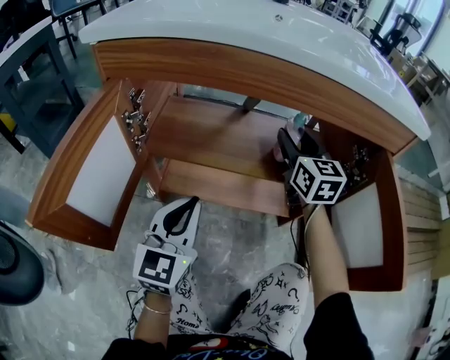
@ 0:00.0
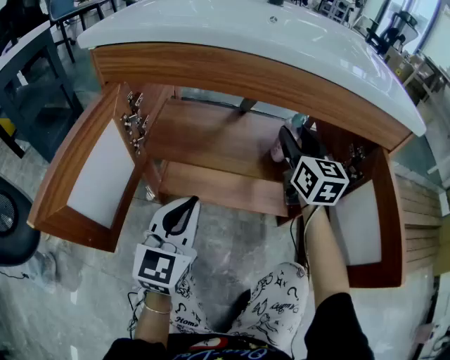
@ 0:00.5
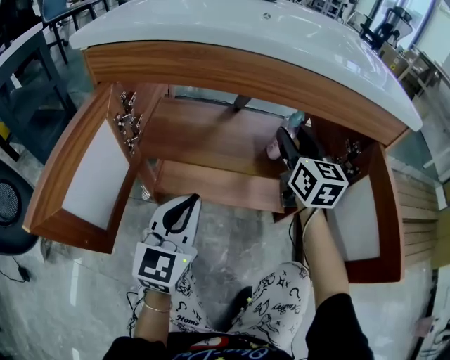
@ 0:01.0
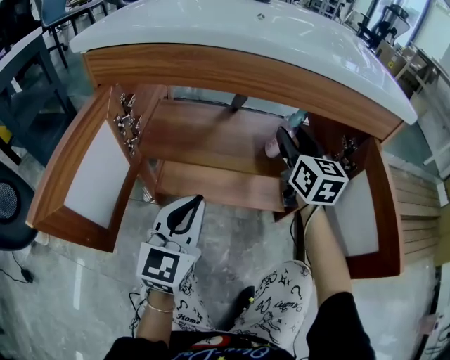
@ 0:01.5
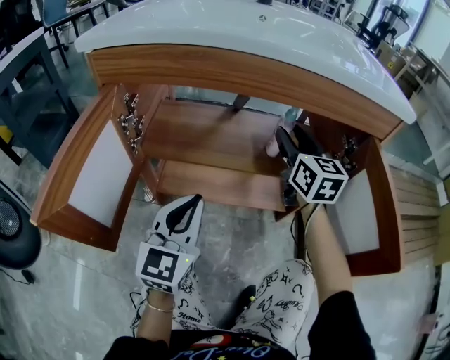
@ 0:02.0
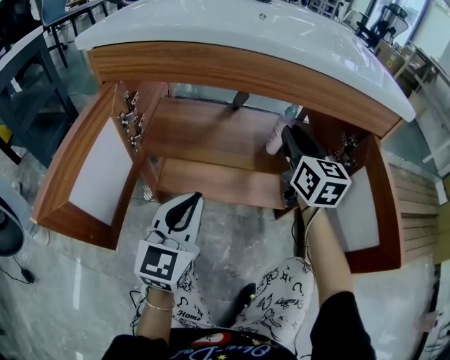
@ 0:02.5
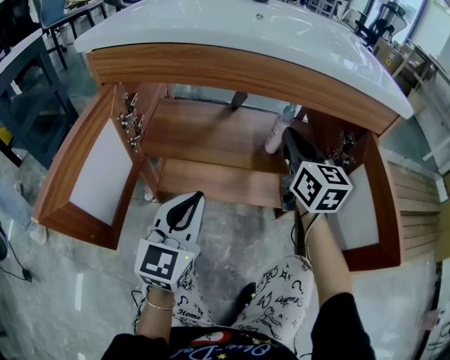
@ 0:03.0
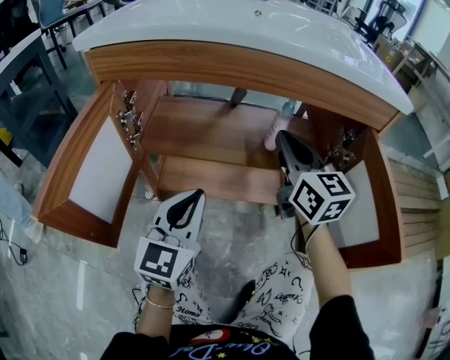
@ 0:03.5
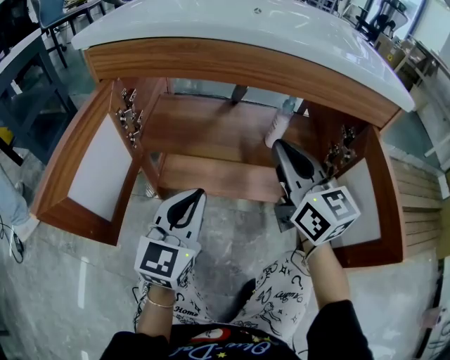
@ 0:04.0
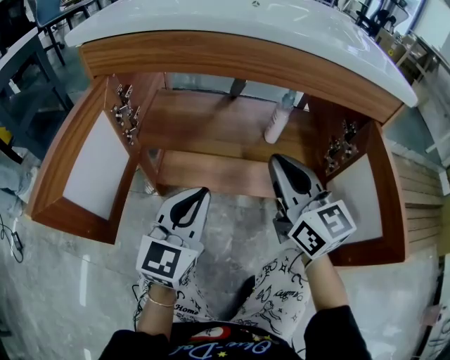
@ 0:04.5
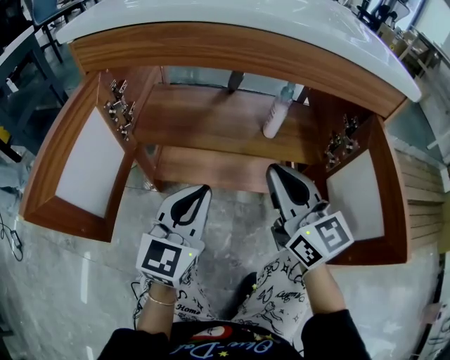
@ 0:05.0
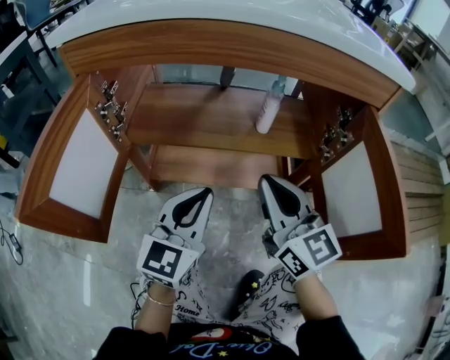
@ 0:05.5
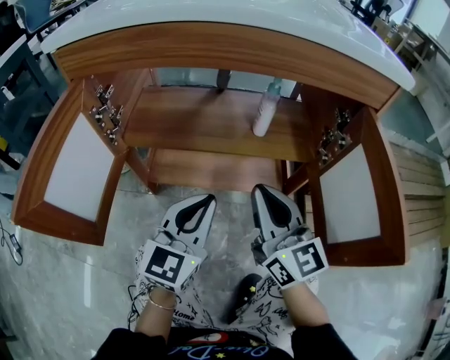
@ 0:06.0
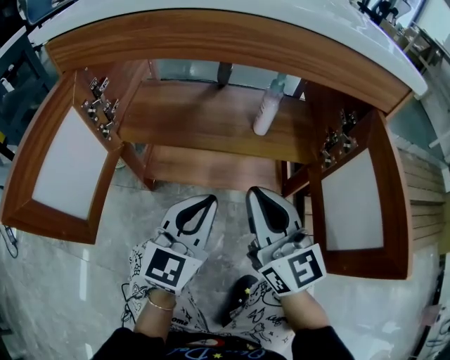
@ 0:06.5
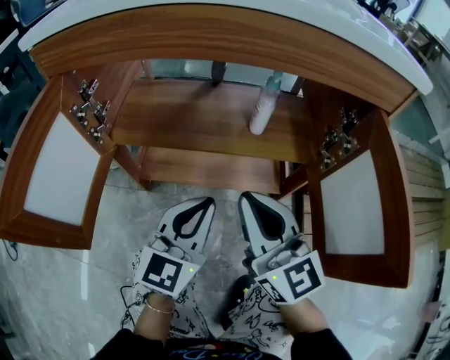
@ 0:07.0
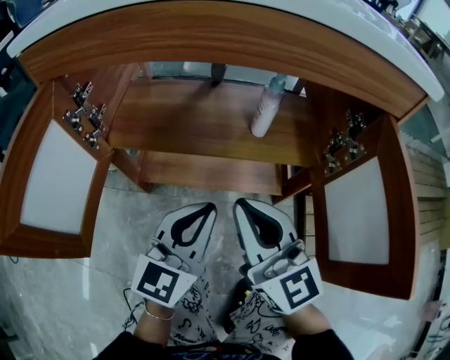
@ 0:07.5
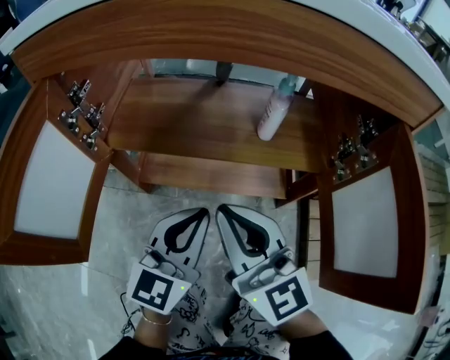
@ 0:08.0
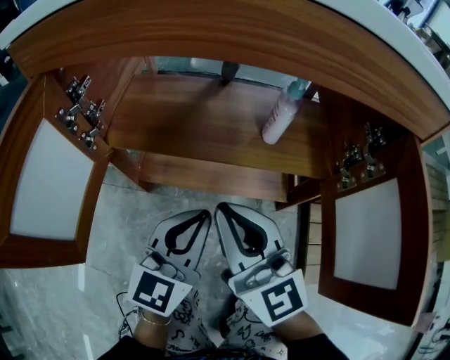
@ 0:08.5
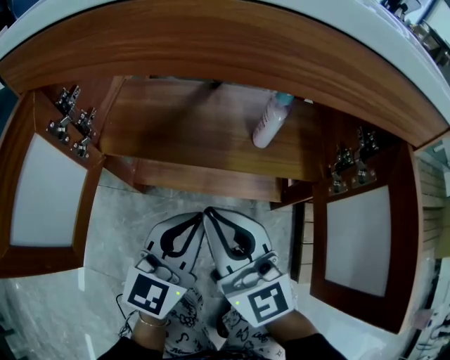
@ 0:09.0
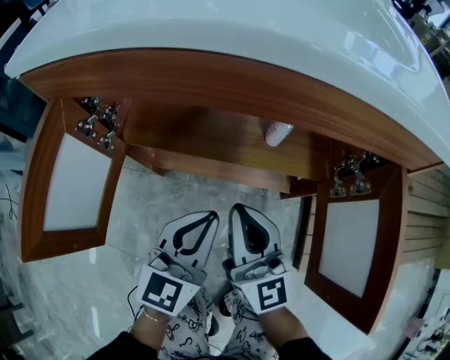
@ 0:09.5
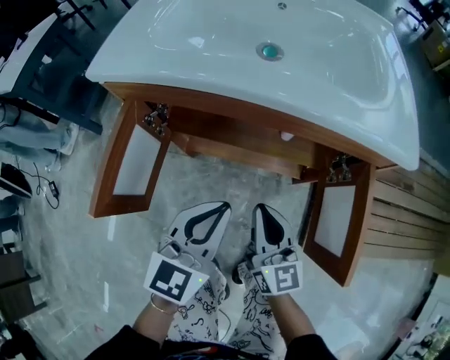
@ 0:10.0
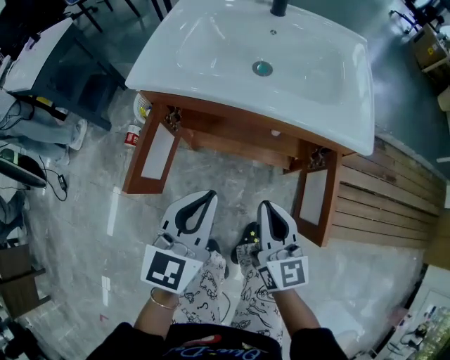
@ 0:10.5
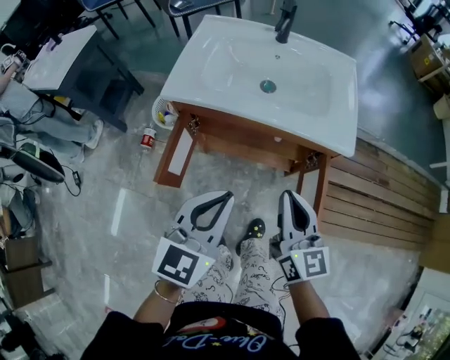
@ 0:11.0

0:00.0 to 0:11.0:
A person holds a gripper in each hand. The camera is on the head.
0:00.0 to 0:02.0: The grippers stay close to where they were, moving slightly.
0:02.0 to 0:03.5: The right gripper is displaced backward by approximately 5 cm, and closes its fingers.
0:03.5 to 0:05.5: The right gripper is displaced backward by some 10 cm.
0:05.5 to 0:07.5: The grippers move only a little.
0:07.5 to 0:09.0: The grippers move only a little.
0:09.0 to 0:11.0: The two grippers go about 35 cm upward. The right gripper changes its angle by roughly 30 degrees.

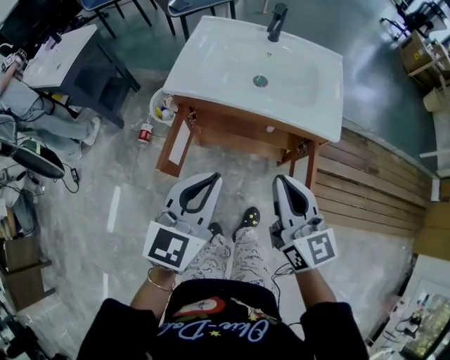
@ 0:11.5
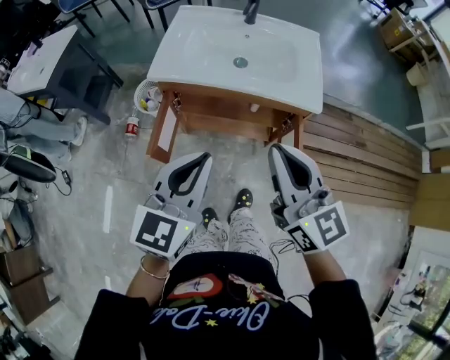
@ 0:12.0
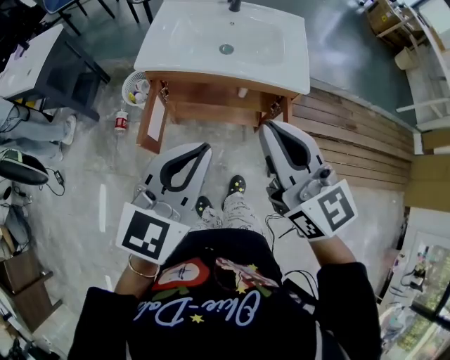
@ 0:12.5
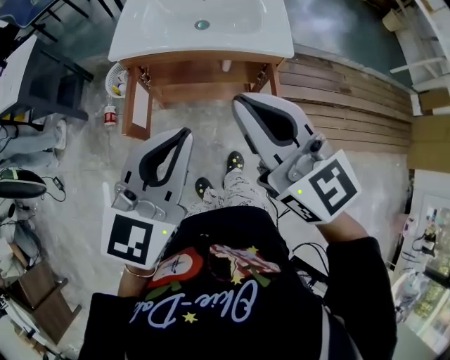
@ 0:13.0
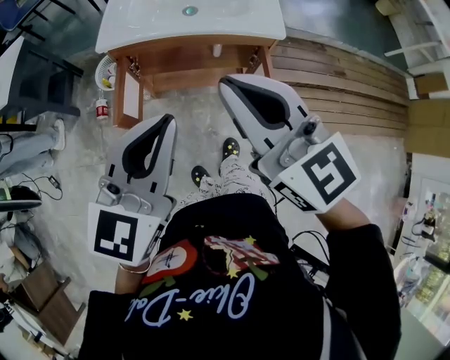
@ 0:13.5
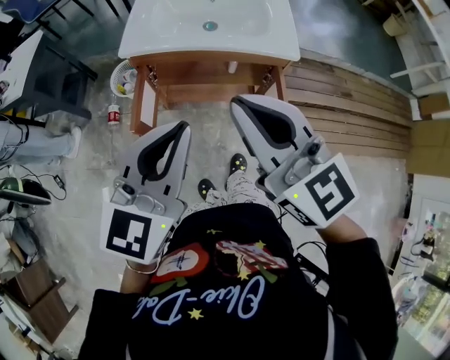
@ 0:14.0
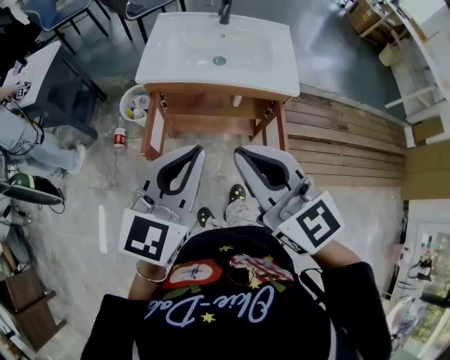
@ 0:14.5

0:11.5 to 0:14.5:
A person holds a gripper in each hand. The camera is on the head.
0:11.5 to 0:13.0: The right gripper moves upward, roughly 10 cm; the left gripper goes roughly 10 cm upward and backward.
0:13.0 to 0:14.5: The right gripper moves approximately 5 cm.

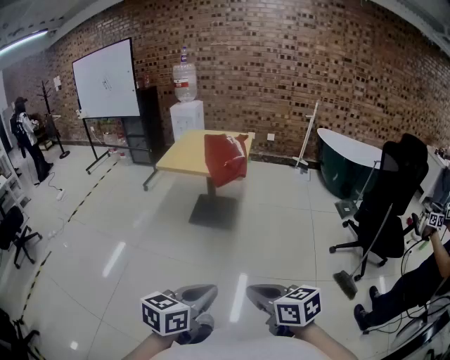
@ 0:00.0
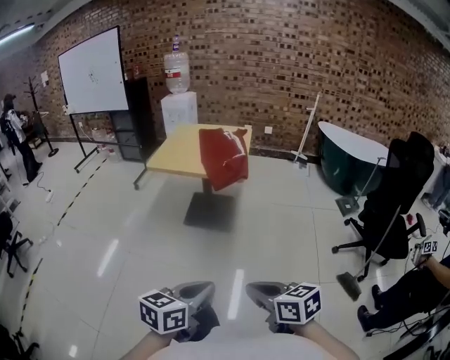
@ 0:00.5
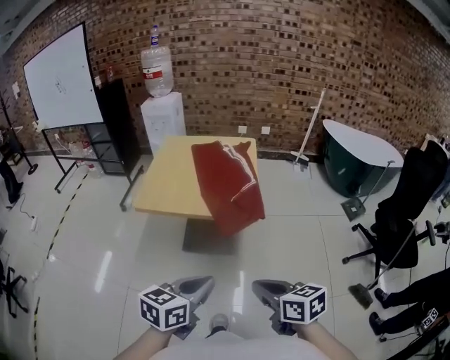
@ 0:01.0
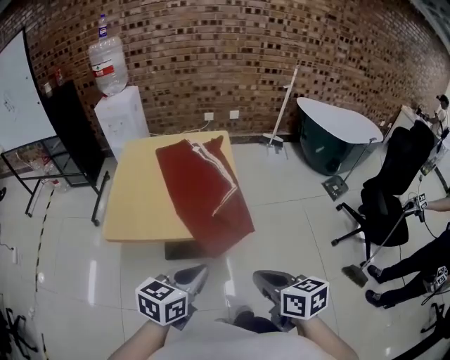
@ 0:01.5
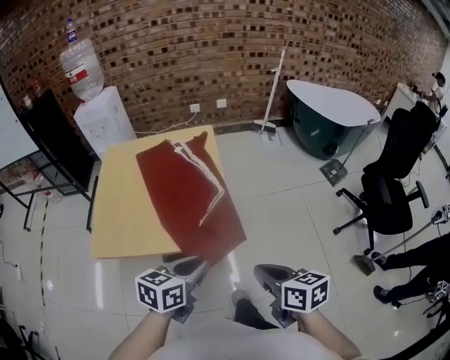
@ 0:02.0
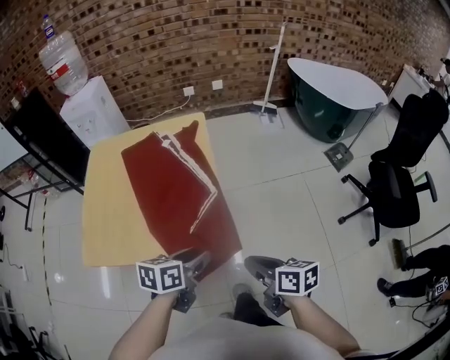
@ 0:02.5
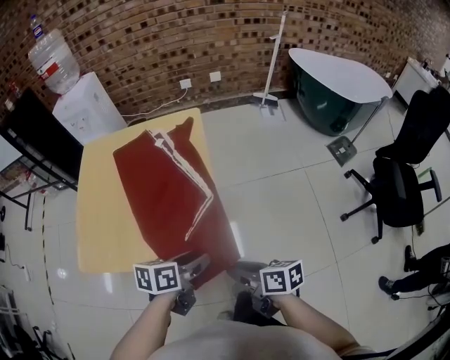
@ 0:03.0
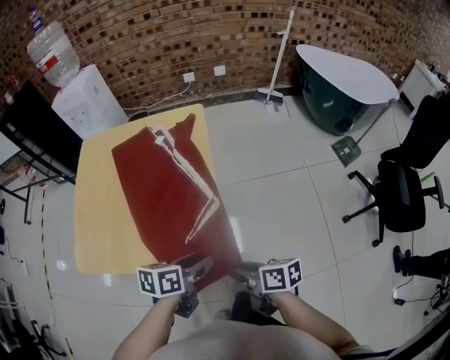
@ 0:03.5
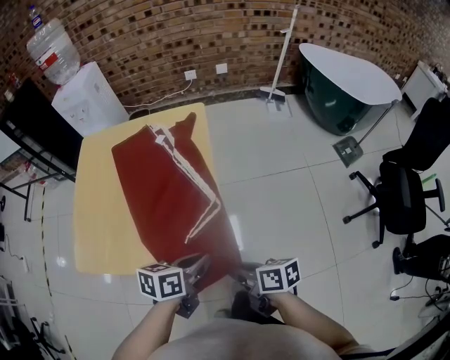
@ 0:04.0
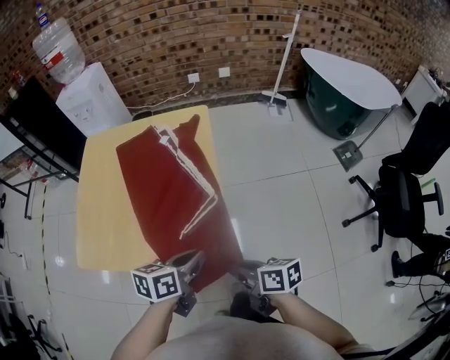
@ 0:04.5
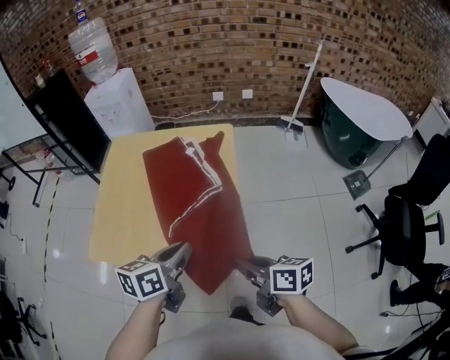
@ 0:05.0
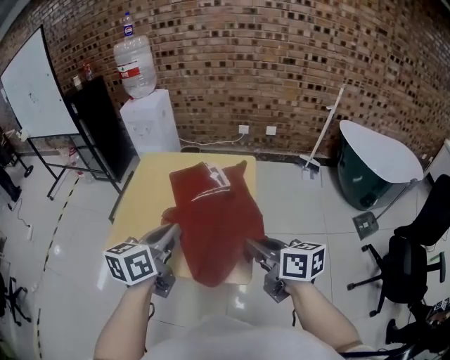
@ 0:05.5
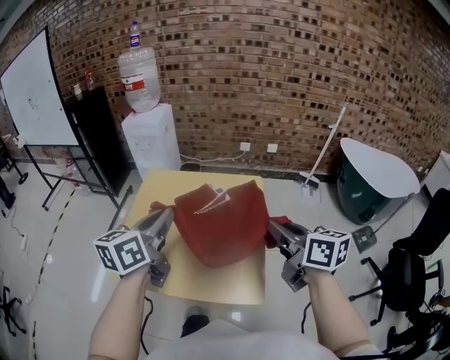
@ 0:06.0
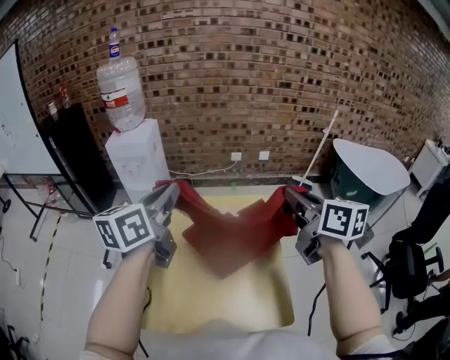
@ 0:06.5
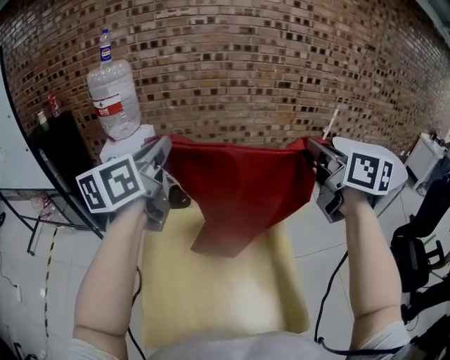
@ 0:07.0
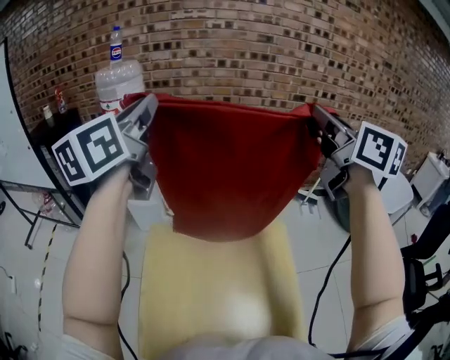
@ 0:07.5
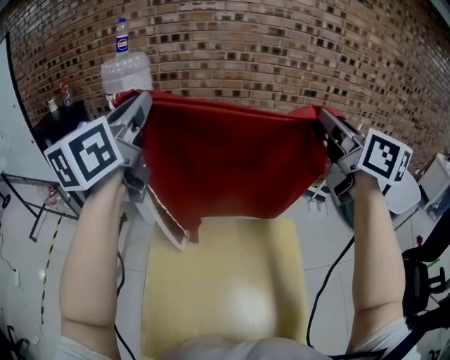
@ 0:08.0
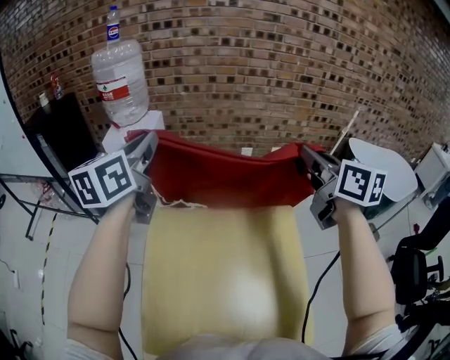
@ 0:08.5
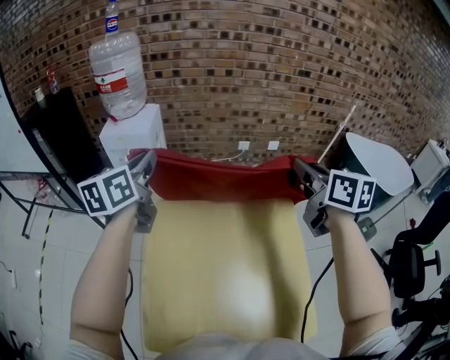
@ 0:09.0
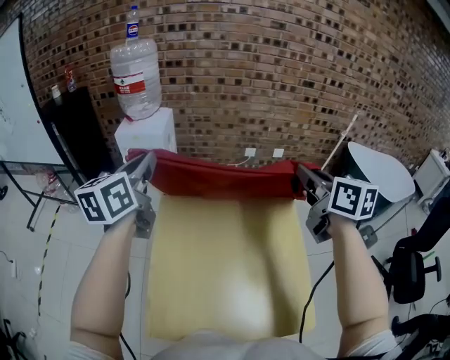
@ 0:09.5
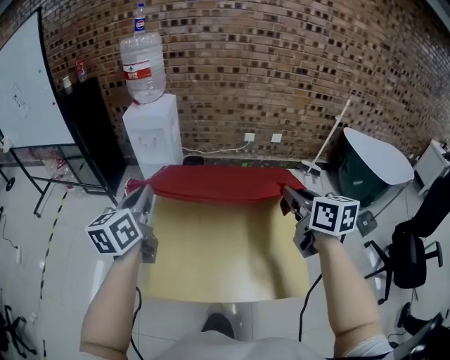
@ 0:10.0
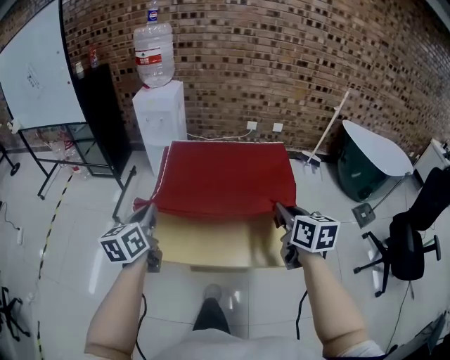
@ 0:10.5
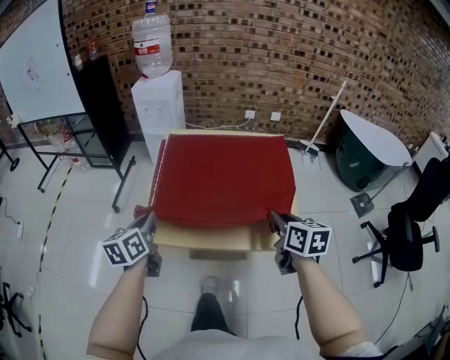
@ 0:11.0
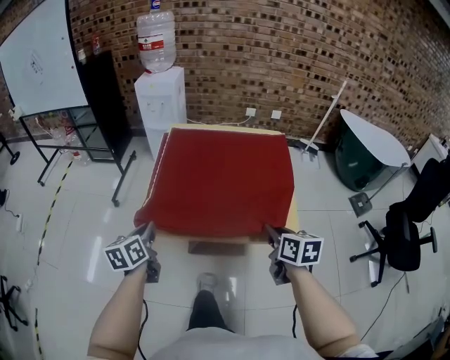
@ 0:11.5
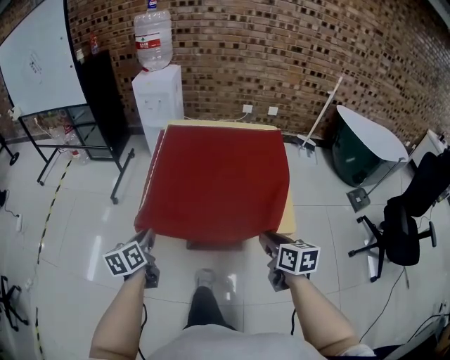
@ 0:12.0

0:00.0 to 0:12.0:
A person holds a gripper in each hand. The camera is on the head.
0:00.0 to 0:02.0: The two grippers travel together, forward, about 70 cm. The right gripper changes its angle by approximately 30 degrees. Meanwhile the left gripper turns by about 20 degrees.
0:02.0 to 0:04.0: The left gripper is displaced forward, downward and to the right by roughly 15 cm, and opens, then closes again. The right gripper travels downward and forward by roughly 20 cm, rotates some 30 degrees, and opens, then closes again.
0:04.0 to 0:06.0: The left gripper moves upward, to the left and forward, some 40 cm, and changes its angle by roughly 50 degrees. Meanwhile the right gripper heads upward and forward, covering some 35 cm, and turns by approximately 40 degrees.
0:06.0 to 0:08.0: The right gripper is displaced forward and upward by some 40 cm, and changes its angle by about 30 degrees, while the left gripper heads forward, upward and to the left, covering approximately 50 cm, and turns by approximately 20 degrees.
0:08.0 to 0:10.0: The right gripper heads backward and downward, covering roughly 35 cm, and turns by about 20 degrees; the left gripper is displaced downward and backward by approximately 40 cm, and swivels some 20 degrees.
0:10.0 to 0:12.0: Both grippers travel together backward and downward, approximately 40 cm. The left gripper swivels roughly 20 degrees.
